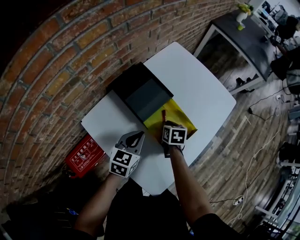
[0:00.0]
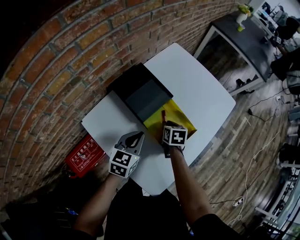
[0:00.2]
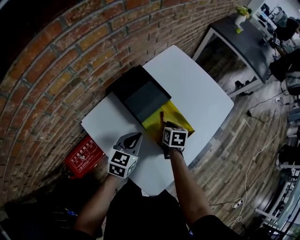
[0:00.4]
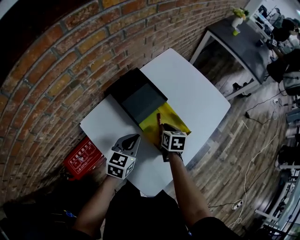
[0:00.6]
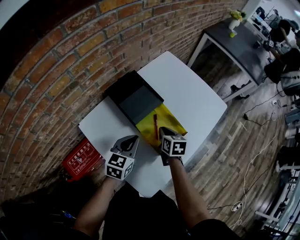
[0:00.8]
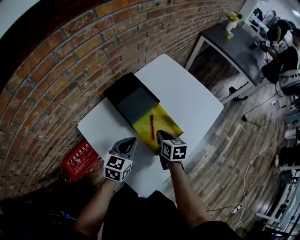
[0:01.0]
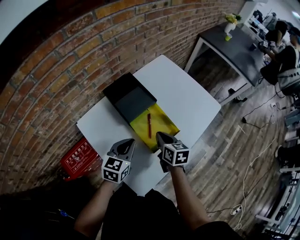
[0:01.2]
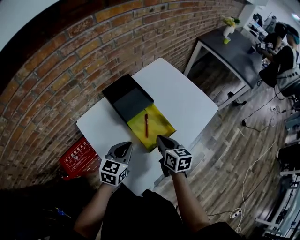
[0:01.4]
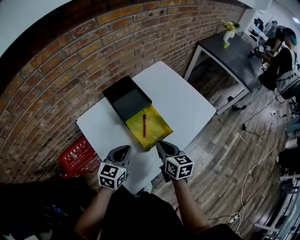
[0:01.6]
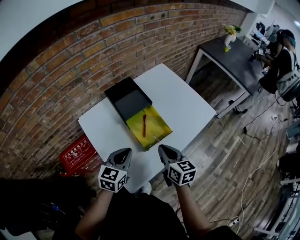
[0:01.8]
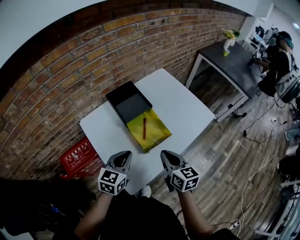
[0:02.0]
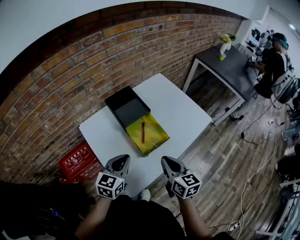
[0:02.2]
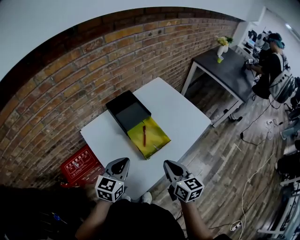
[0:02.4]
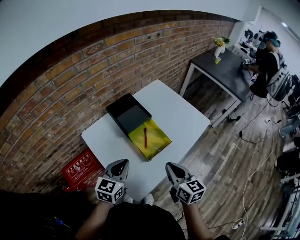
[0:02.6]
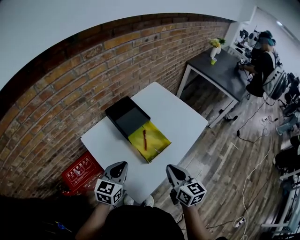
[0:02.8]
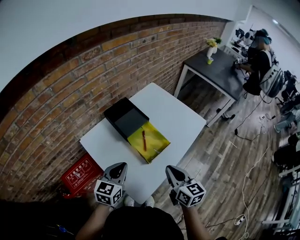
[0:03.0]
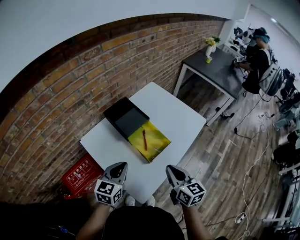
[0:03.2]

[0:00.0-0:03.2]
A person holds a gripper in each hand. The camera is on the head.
0:00.0 to 0:01.6: The right gripper heads upward, backward and to the right, covering about 20 cm, and changes its angle by some 30 degrees. Meanwhile the left gripper travels backward, upward and to the right by about 10 cm.
0:01.6 to 0:03.2: The right gripper is displaced backward and upward by roughly 15 cm. Meanwhile the left gripper heads upward, covering approximately 5 cm.

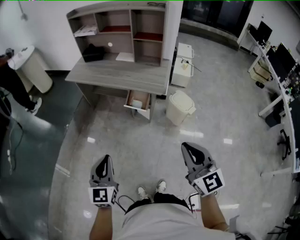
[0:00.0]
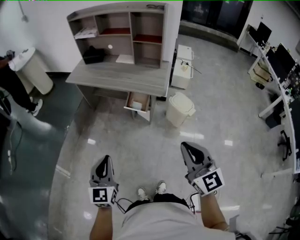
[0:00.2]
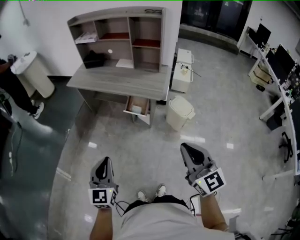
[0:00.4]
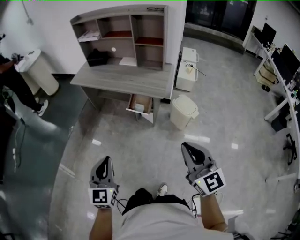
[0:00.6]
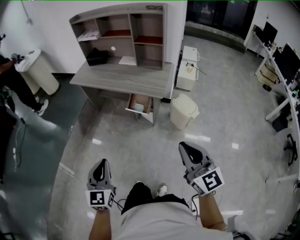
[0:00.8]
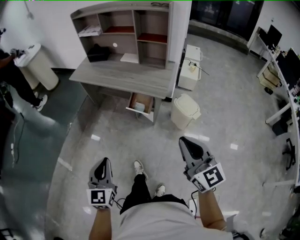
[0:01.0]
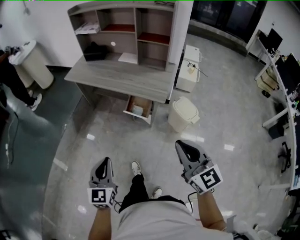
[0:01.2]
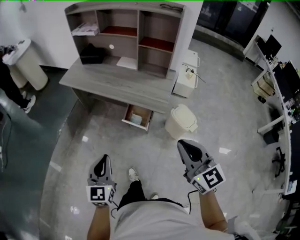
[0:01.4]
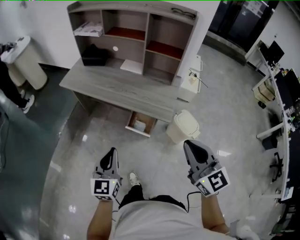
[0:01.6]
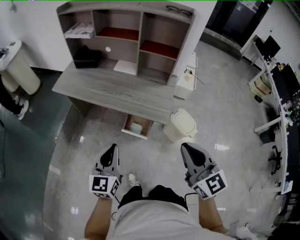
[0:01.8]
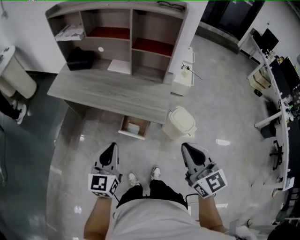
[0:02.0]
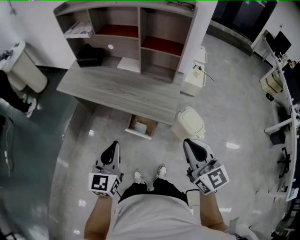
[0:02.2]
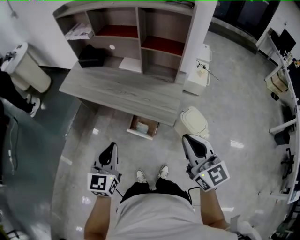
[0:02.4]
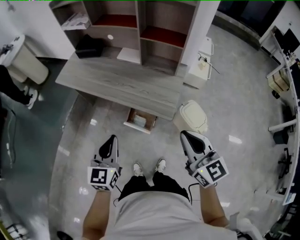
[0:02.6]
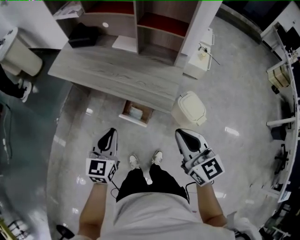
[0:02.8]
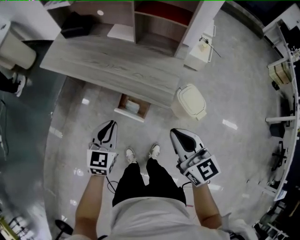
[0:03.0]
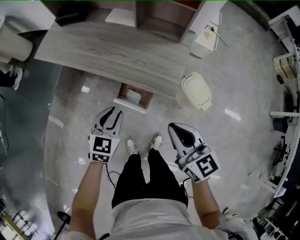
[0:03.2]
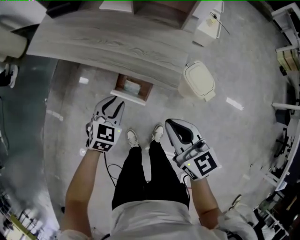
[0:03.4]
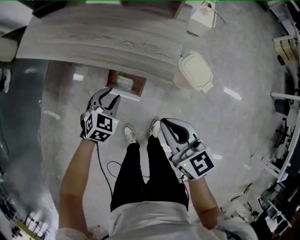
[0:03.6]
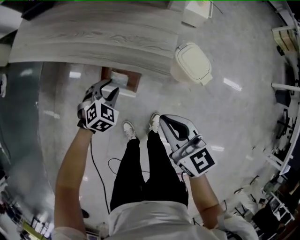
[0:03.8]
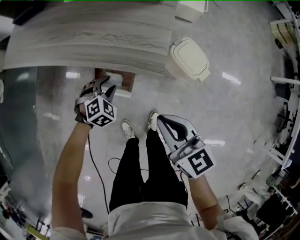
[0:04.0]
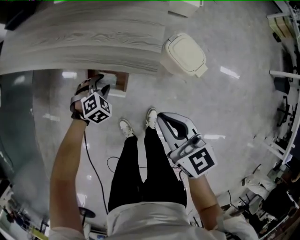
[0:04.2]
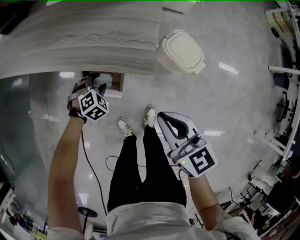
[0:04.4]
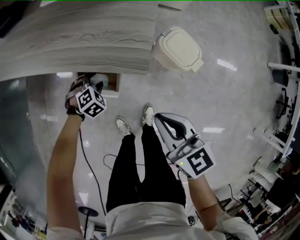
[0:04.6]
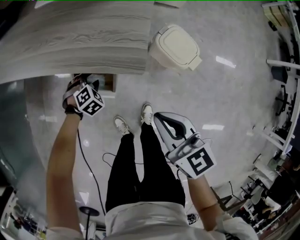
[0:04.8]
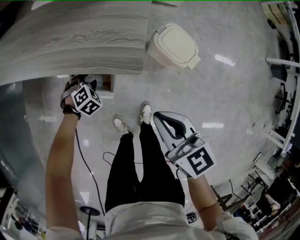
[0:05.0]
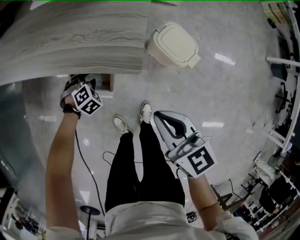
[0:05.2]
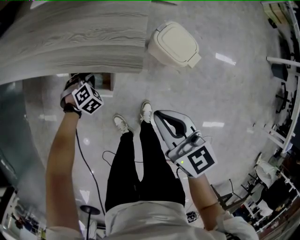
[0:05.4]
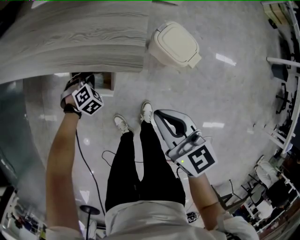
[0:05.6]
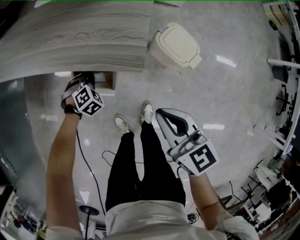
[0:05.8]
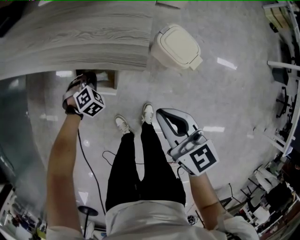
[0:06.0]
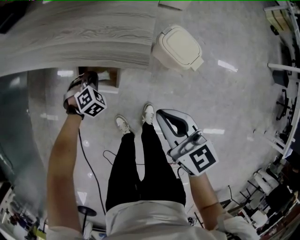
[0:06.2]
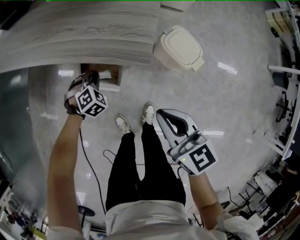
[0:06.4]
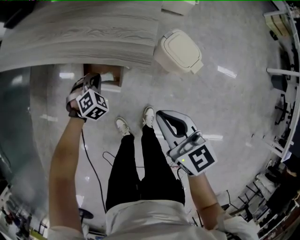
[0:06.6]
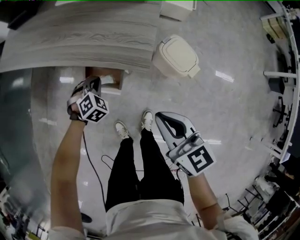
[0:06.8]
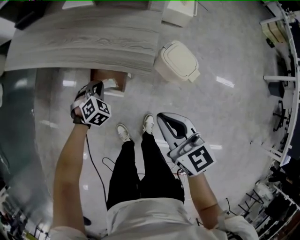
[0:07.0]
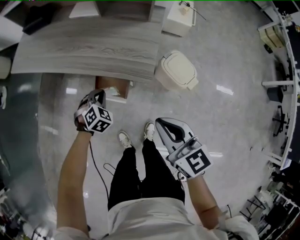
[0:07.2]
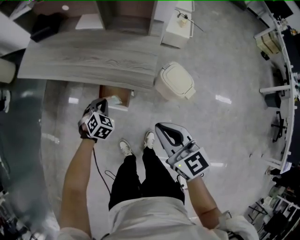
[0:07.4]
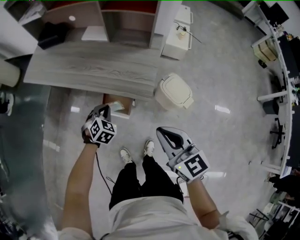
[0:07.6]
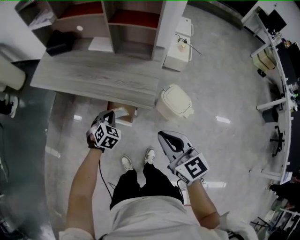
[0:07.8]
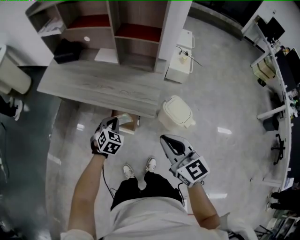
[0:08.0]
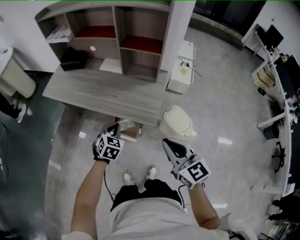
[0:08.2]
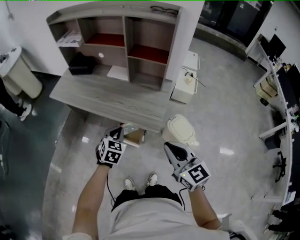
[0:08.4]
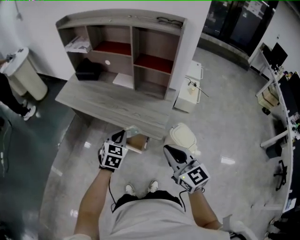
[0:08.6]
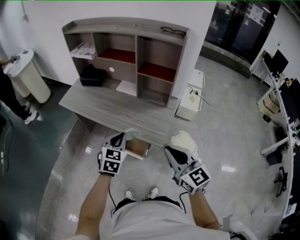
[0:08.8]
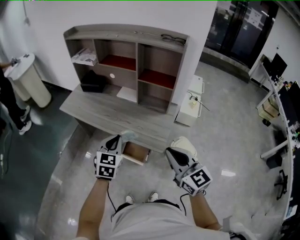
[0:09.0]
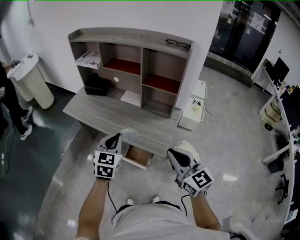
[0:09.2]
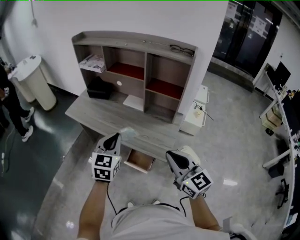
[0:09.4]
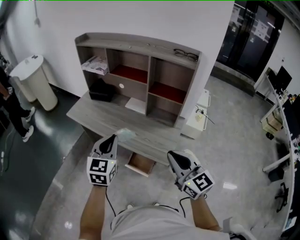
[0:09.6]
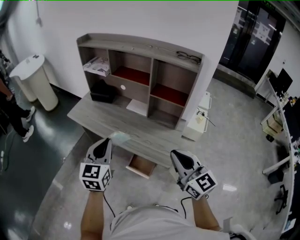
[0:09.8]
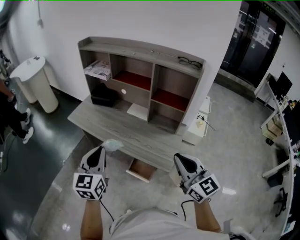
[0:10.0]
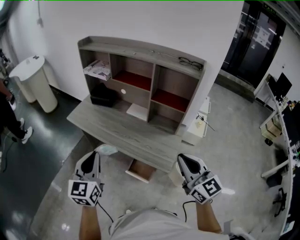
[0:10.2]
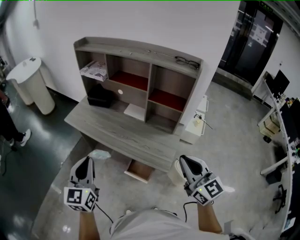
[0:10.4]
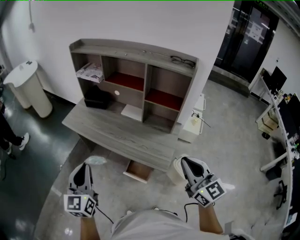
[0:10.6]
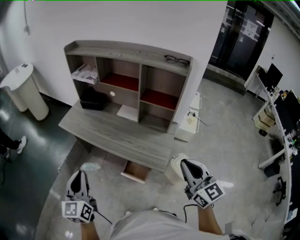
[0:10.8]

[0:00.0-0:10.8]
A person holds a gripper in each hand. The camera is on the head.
0:00.0 to 0:01.6: The two grippers go approximately 25 cm forward.
0:01.6 to 0:03.0: The right gripper is displaced downward and forward by approximately 20 cm, while the left gripper moves forward, downward and to the right, approximately 25 cm, and turns by roughly 20 degrees.
0:03.0 to 0:04.6: The right gripper goes about 15 cm downward, while the left gripper heads downward, covering about 30 cm, tilts its fingers some 40 degrees downward, and opens its fingers.
0:04.6 to 0:06.2: The left gripper closes up.
0:06.2 to 0:07.8: The two grippers go about 20 cm upward. The left gripper swivels some 30 degrees.
0:07.8 to 0:09.2: The left gripper goes roughly 30 cm upward, and turns by roughly 40 degrees; the right gripper heads upward, covering roughly 15 cm.
0:09.2 to 0:10.8: The left gripper goes some 15 cm to the left, and rotates about 30 degrees, while the right gripper shifts by roughly 5 cm.

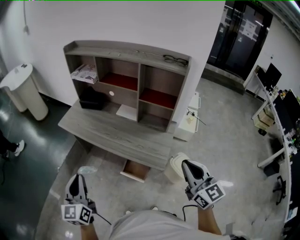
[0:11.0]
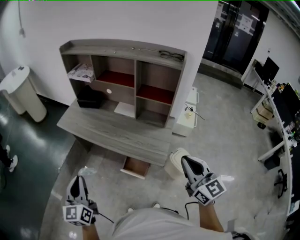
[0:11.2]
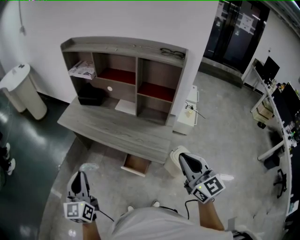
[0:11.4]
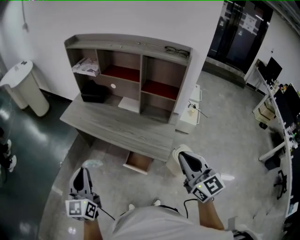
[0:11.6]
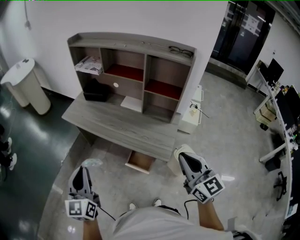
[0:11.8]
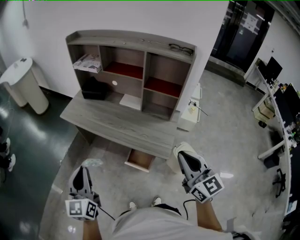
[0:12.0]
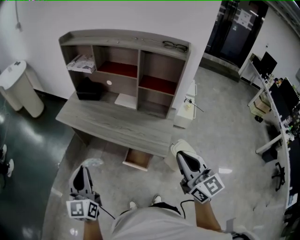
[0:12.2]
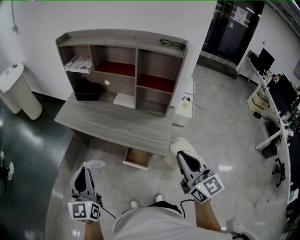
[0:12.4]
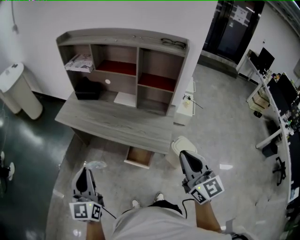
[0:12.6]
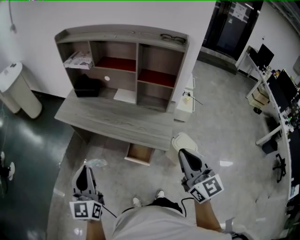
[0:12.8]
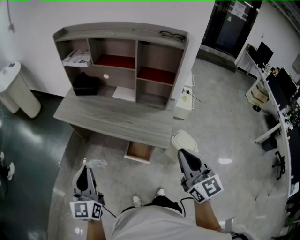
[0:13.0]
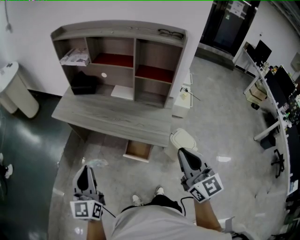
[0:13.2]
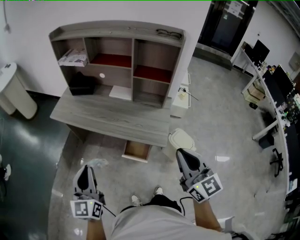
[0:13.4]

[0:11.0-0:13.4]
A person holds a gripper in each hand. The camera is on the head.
0:11.0 to 0:12.2: The right gripper is displaced to the left by about 5 cm.
0:12.2 to 0:13.4: The grippers stay close to where they were, moving slightly.

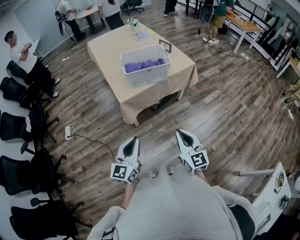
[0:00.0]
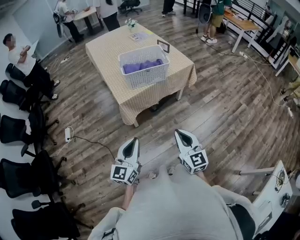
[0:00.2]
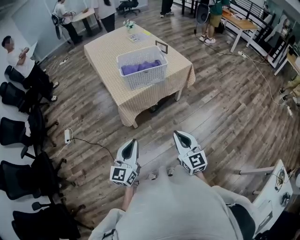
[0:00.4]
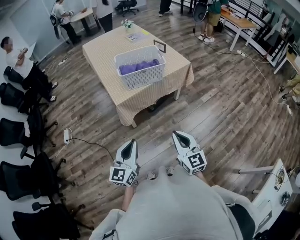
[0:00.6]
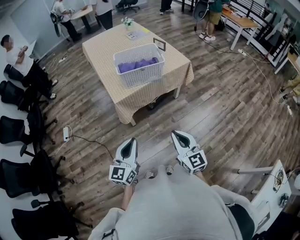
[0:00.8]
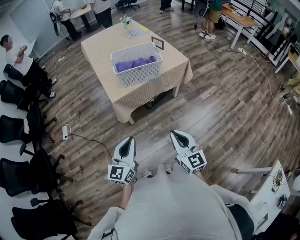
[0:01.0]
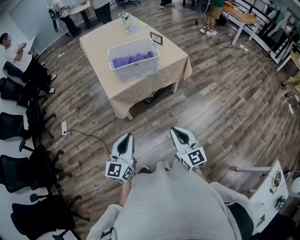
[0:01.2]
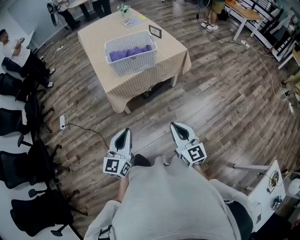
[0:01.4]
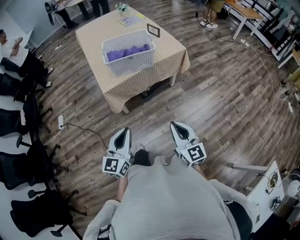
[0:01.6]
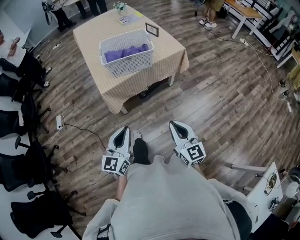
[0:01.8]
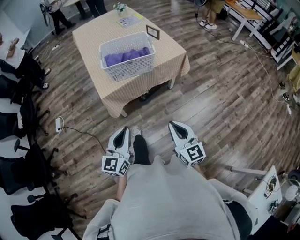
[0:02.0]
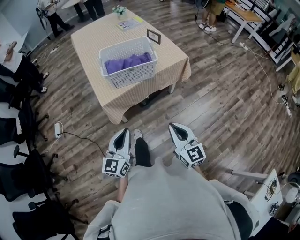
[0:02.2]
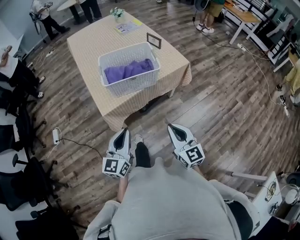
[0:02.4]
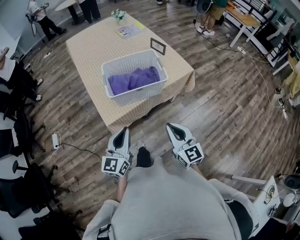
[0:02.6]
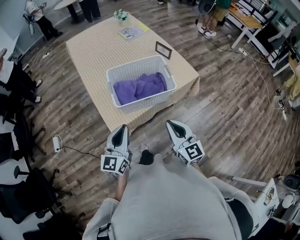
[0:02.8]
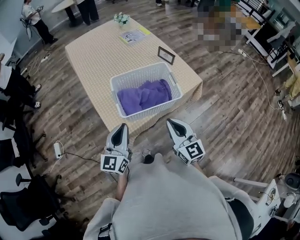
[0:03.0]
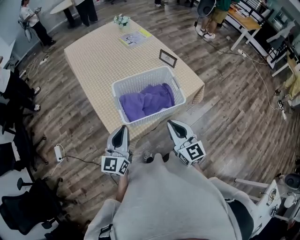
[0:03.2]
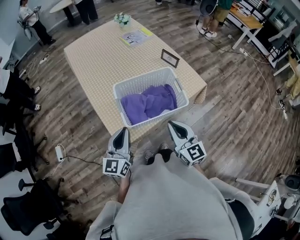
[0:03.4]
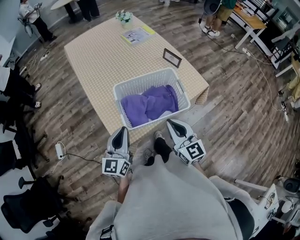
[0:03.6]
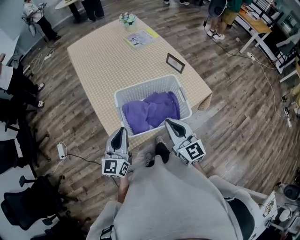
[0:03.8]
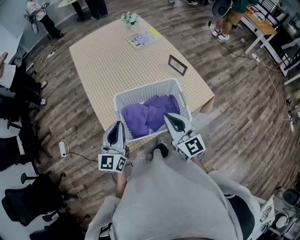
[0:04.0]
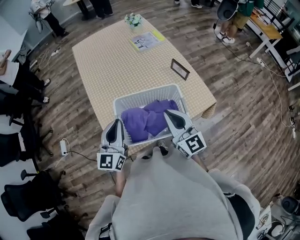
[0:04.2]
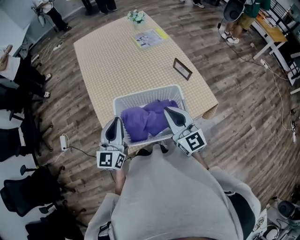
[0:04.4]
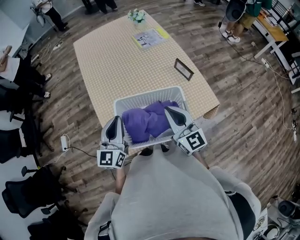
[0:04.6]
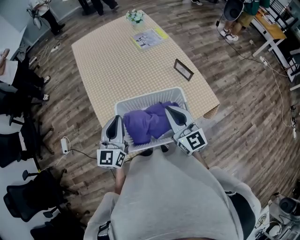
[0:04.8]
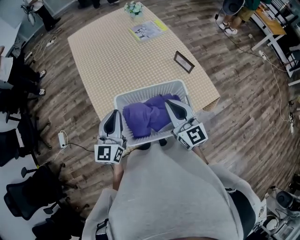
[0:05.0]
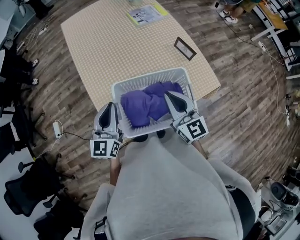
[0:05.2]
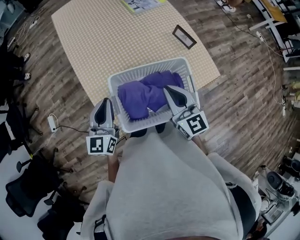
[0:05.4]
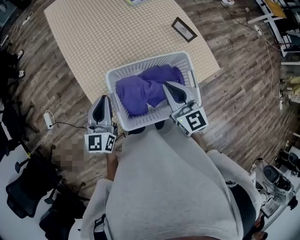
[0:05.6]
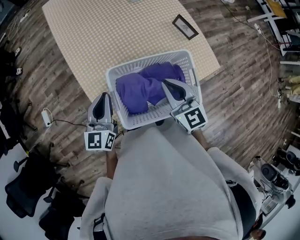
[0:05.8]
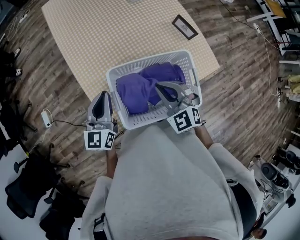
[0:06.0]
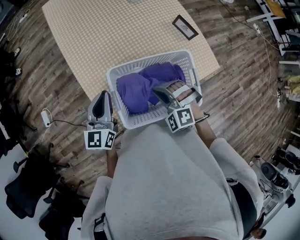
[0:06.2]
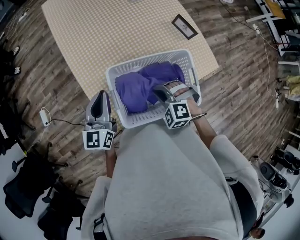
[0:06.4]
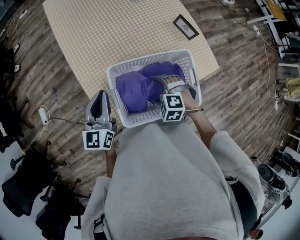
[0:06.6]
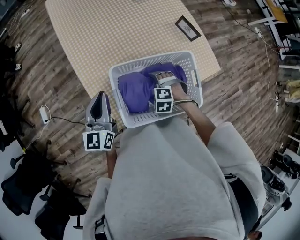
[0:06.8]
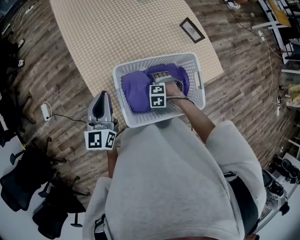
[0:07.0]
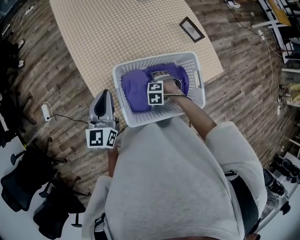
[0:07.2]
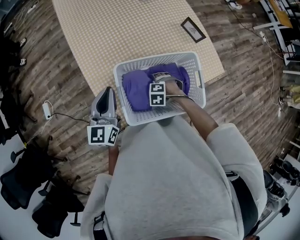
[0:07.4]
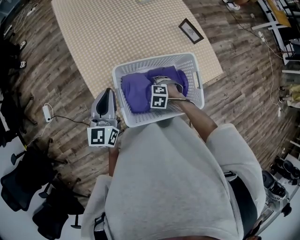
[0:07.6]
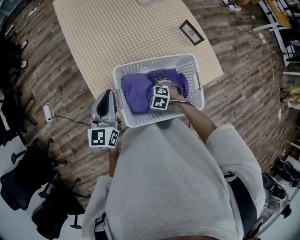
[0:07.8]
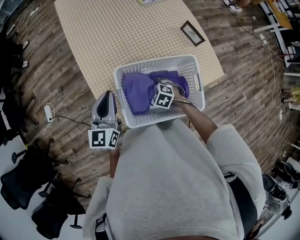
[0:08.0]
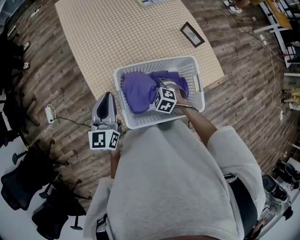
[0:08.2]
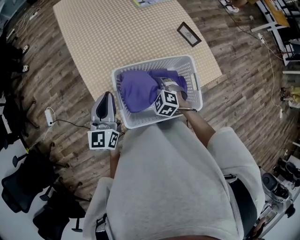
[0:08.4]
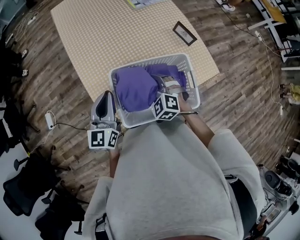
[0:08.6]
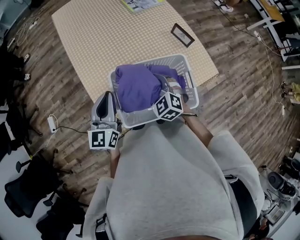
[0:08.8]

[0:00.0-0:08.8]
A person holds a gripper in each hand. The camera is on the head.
0:00.0 to 0:01.4: The two grippers go some 5 cm to the right.
0:01.4 to 0:03.0: Both grippers are carried forward, some 40 cm.
0:03.0 to 0:04.4: Both grippers move forward, roughly 20 cm.
0:04.4 to 0:05.8: The left gripper goes approximately 10 cm downward, to the left and forward. Meanwhile the right gripper moves downward, some 5 cm.
0:05.8 to 0:07.4: The right gripper is displaced downward by about 25 cm, angles its fingers downward, by approximately 60 degrees, and opens its fingers.
0:07.4 to 0:08.8: The right gripper travels upward by approximately 20 cm, and points its fingers approximately 40 degrees further upward.
